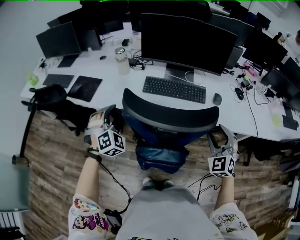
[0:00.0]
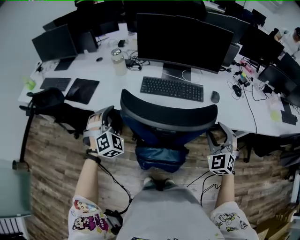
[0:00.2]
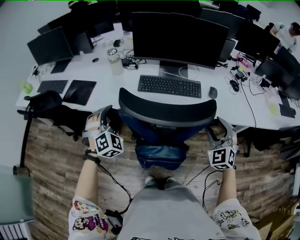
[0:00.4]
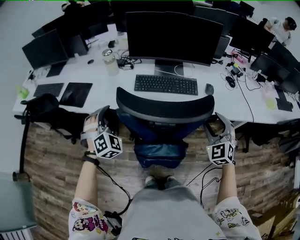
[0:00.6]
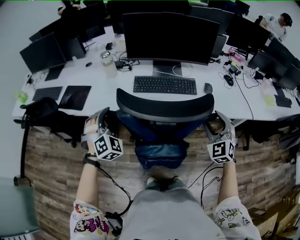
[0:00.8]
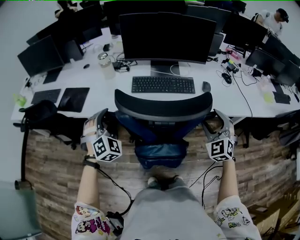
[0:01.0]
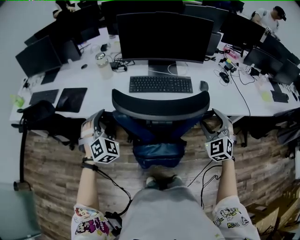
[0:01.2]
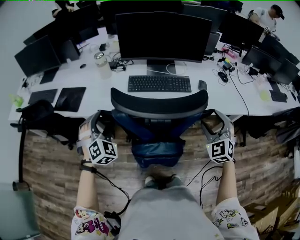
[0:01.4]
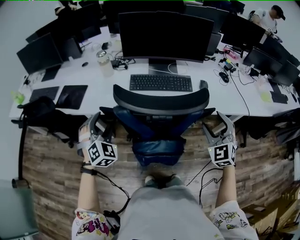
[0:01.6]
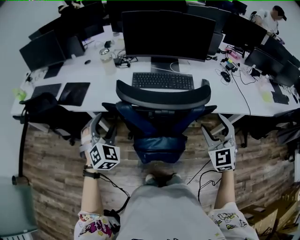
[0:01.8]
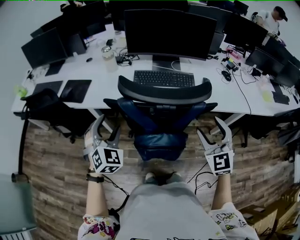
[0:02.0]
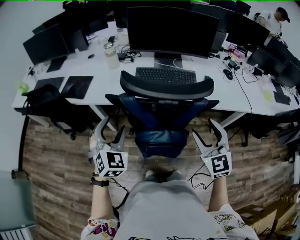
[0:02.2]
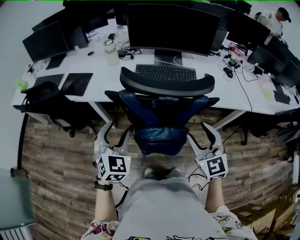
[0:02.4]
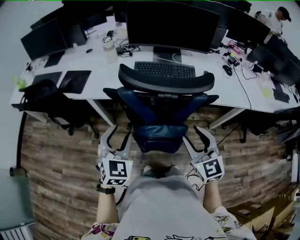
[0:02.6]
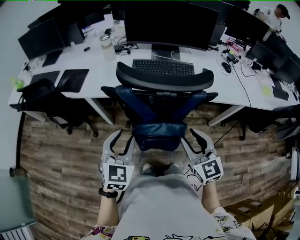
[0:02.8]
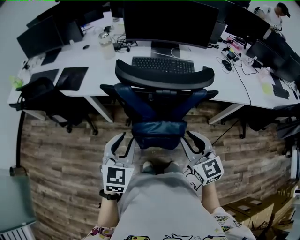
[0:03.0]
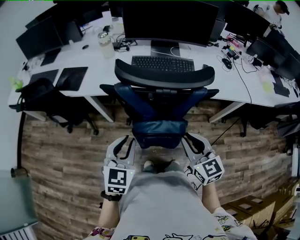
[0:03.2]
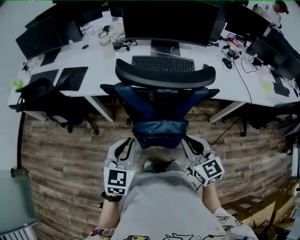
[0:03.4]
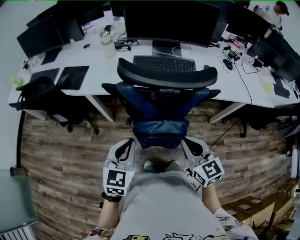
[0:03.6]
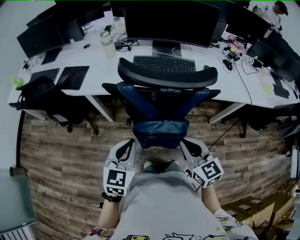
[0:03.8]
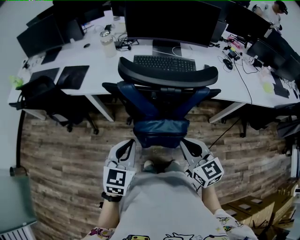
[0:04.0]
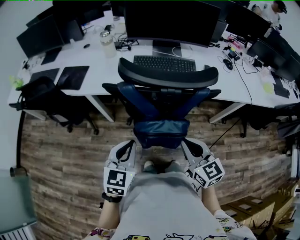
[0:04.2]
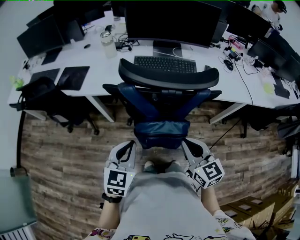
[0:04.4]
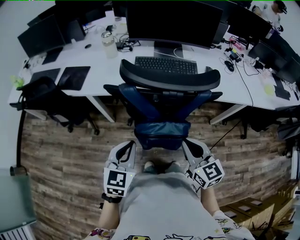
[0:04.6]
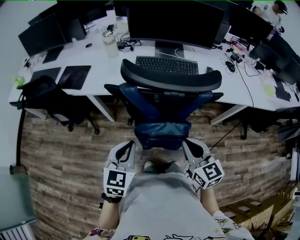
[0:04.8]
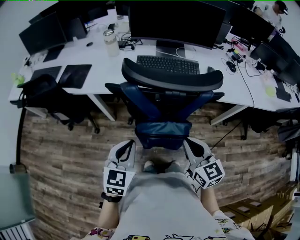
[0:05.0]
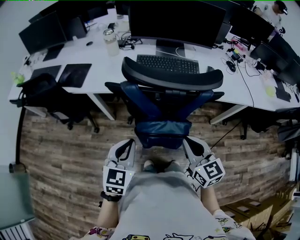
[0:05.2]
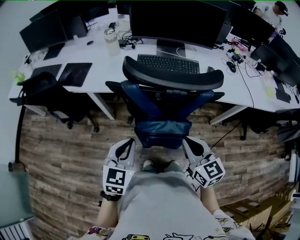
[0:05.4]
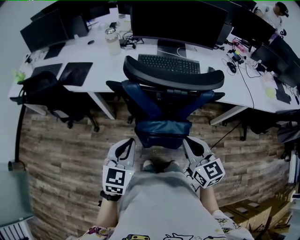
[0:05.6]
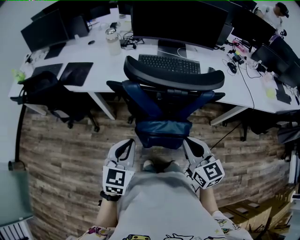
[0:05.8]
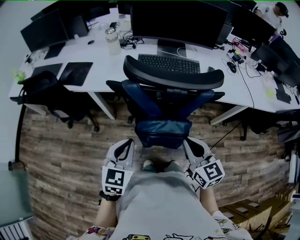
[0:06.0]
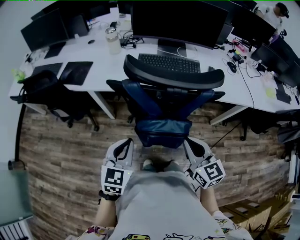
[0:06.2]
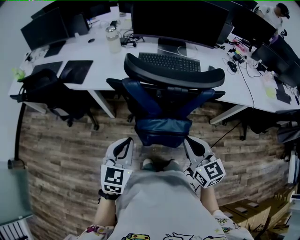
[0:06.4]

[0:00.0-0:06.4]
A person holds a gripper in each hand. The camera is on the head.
0:00.0 to 0:01.6: There are only small adjustments of the grippers.
0:01.6 to 0:03.2: The right gripper moves to the left and backward, roughly 20 cm, changes its angle by about 40 degrees, and closes up; the left gripper travels backward and to the right by some 20 cm, twists approximately 40 degrees counterclockwise, seen from behind, and closes up.
0:03.2 to 0:04.8: There are only small adjustments of the grippers.
0:04.8 to 0:06.4: Neither gripper changes place.

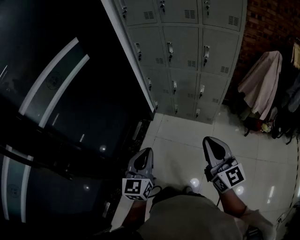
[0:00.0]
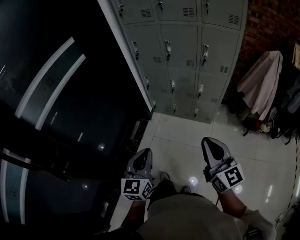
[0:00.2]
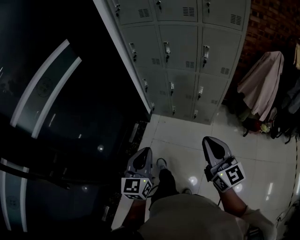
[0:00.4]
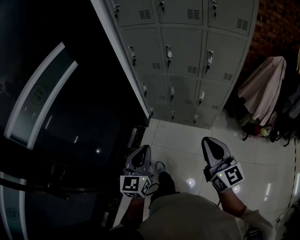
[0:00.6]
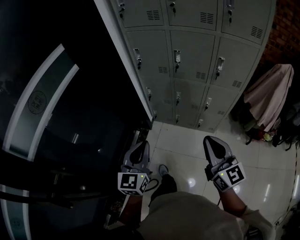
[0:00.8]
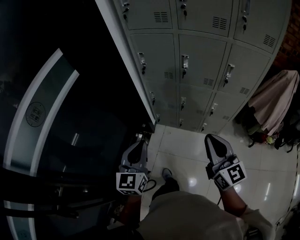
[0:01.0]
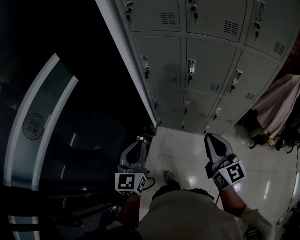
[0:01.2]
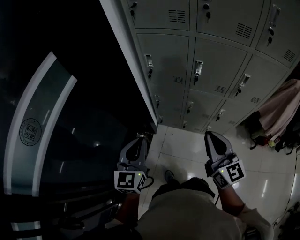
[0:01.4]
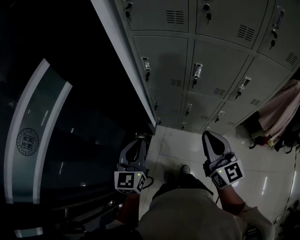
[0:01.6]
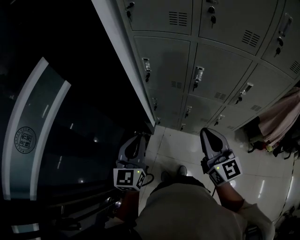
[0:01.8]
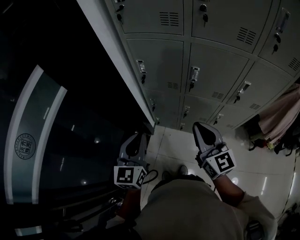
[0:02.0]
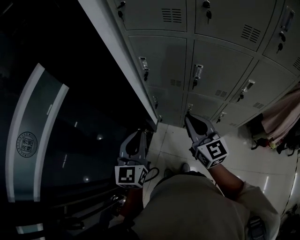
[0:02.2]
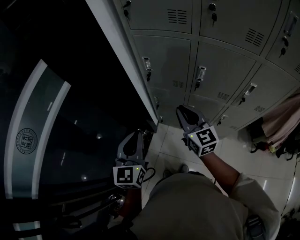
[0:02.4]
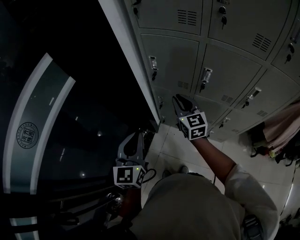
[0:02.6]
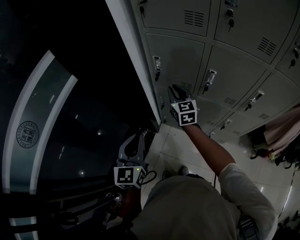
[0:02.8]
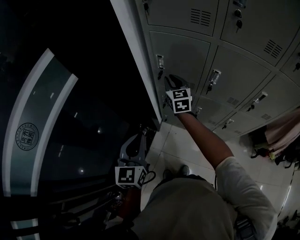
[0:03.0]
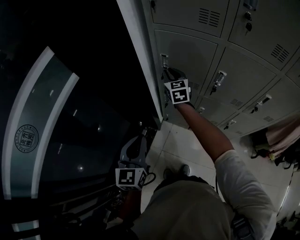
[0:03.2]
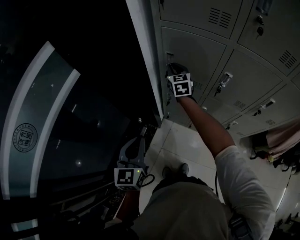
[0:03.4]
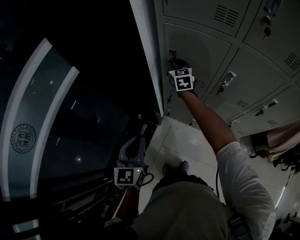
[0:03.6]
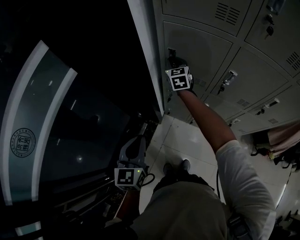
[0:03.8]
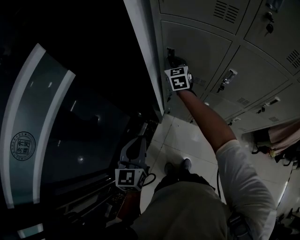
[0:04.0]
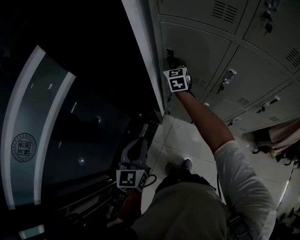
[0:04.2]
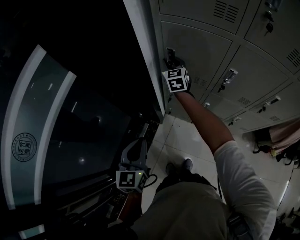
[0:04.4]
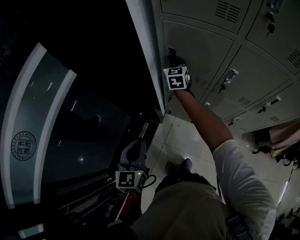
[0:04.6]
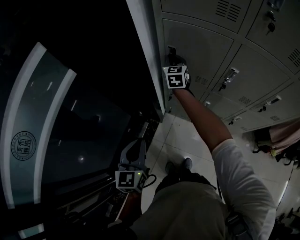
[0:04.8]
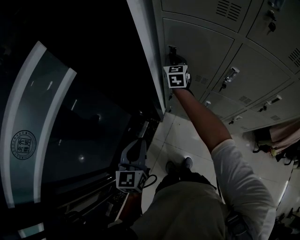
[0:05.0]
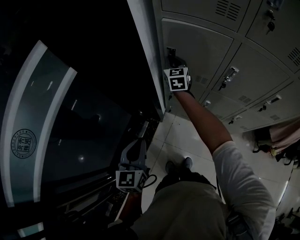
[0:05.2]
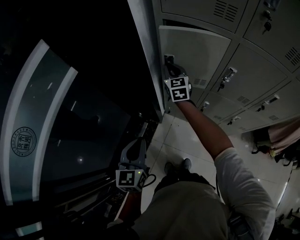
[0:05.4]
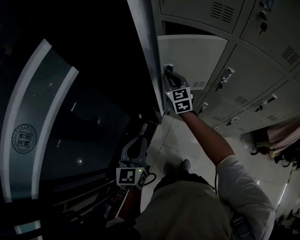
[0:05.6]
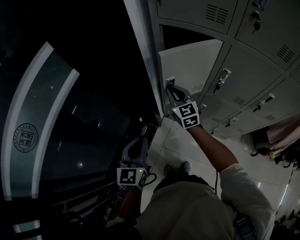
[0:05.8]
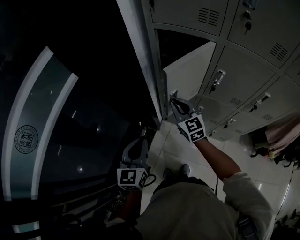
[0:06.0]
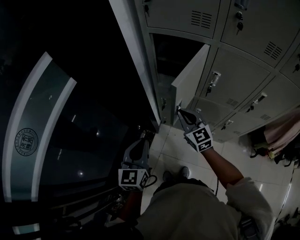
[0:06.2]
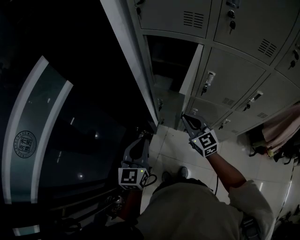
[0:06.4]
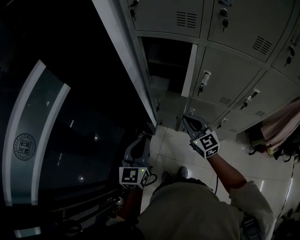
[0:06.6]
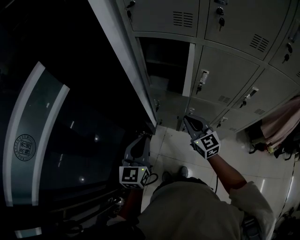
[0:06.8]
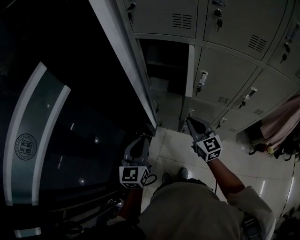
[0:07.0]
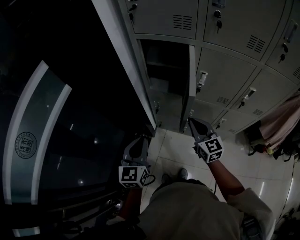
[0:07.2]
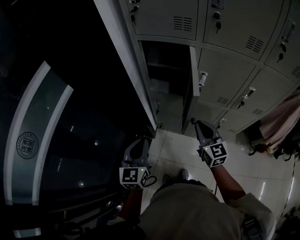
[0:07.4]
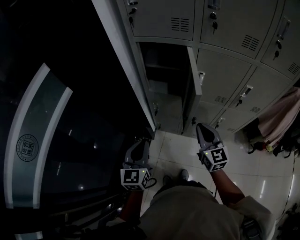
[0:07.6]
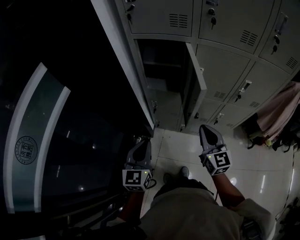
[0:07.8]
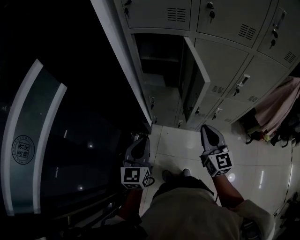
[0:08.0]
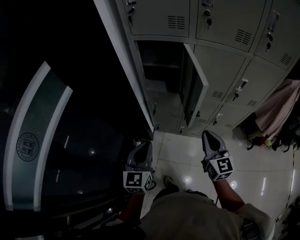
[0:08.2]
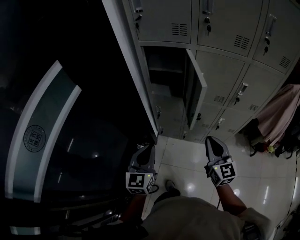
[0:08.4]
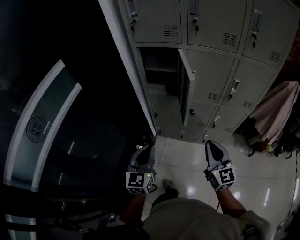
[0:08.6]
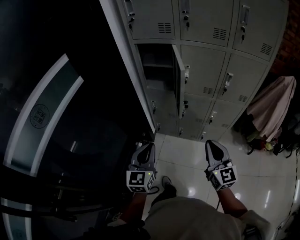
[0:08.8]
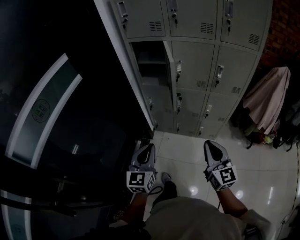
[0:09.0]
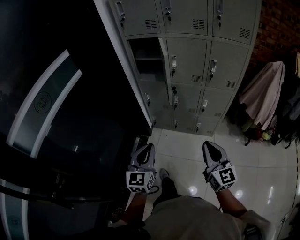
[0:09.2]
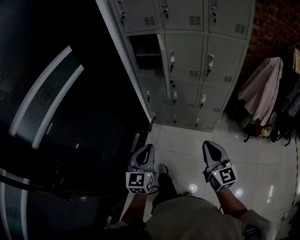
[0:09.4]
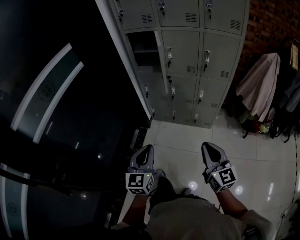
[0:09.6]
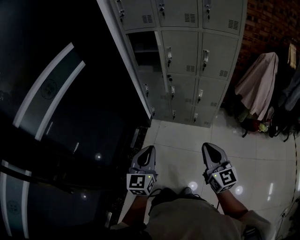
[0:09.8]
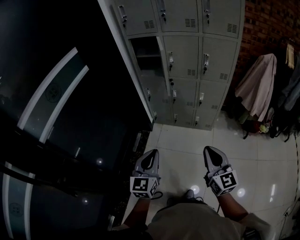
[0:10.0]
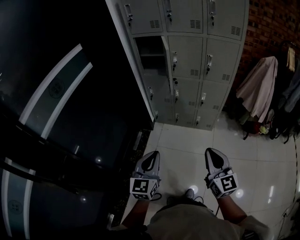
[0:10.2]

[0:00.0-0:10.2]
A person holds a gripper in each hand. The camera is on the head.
0:00.0 to 0:01.4: The pair of grippers is taken forward, roughly 50 cm.
0:01.4 to 0:03.0: The left gripper heads forward and downward, covering some 10 cm. The right gripper heads forward and downward, covering some 40 cm, and changes its angle by approximately 30 degrees.
0:03.0 to 0:04.4: The right gripper shifts some 10 cm forward; the left gripper is displaced downward by approximately 10 cm.
0:04.4 to 0:05.8: The right gripper moves backward, approximately 15 cm, and closes its fingers.
0:05.8 to 0:07.2: The left gripper goes approximately 5 cm to the right; the right gripper is displaced backward and to the right by about 20 cm.
0:07.2 to 0:08.8: The right gripper travels backward and upward by about 30 cm; the left gripper heads backward, covering some 20 cm.
0:08.8 to 0:10.2: Both grippers move backward, approximately 30 cm.

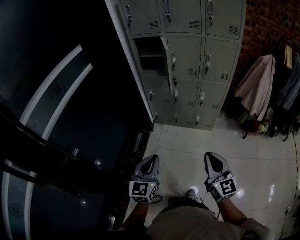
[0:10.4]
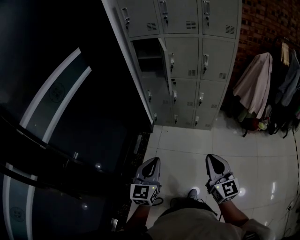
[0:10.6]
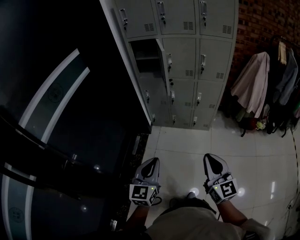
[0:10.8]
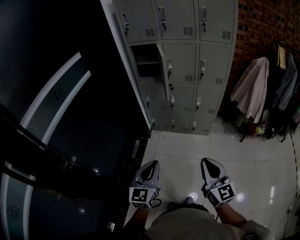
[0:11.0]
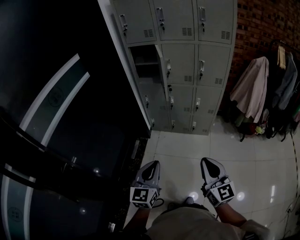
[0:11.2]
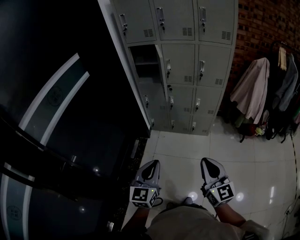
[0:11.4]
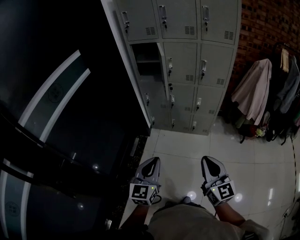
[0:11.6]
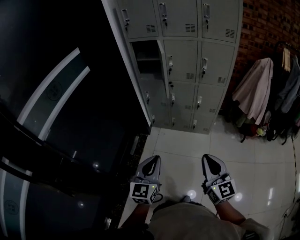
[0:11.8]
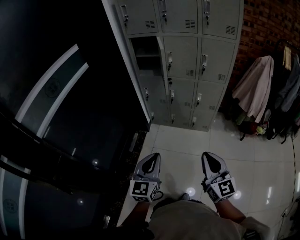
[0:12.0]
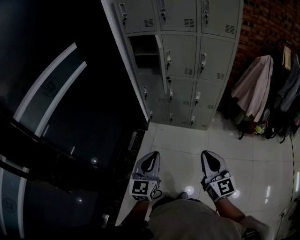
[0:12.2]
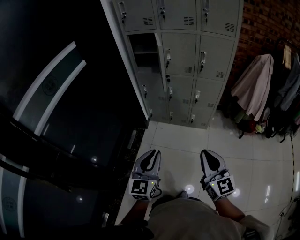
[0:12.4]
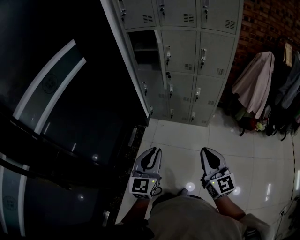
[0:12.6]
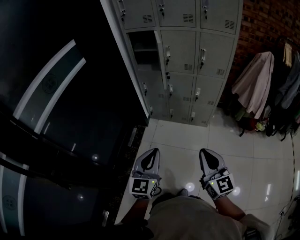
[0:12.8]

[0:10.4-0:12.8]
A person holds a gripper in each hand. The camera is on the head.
0:10.4 to 0:11.6: There are only small adjustments of the grippers.
0:11.6 to 0:12.8: There are only small adjustments of the grippers.

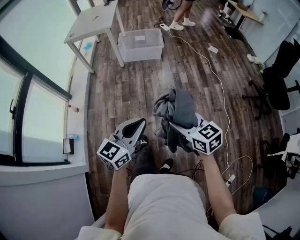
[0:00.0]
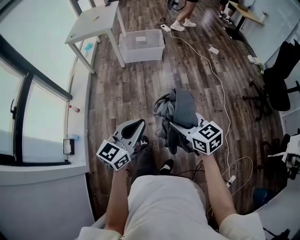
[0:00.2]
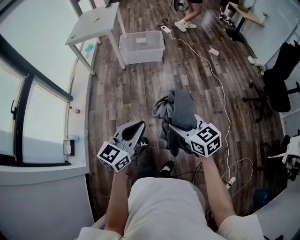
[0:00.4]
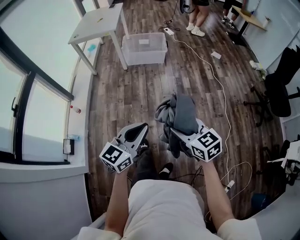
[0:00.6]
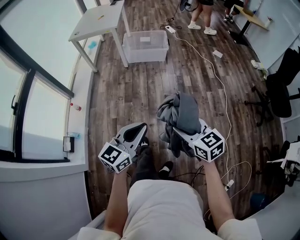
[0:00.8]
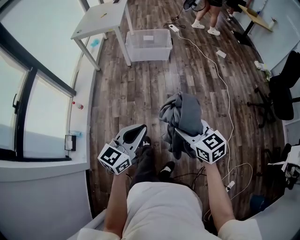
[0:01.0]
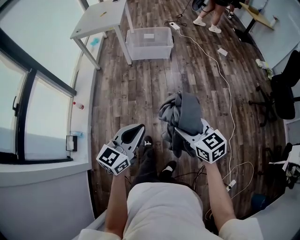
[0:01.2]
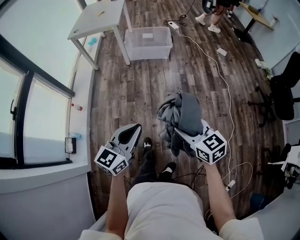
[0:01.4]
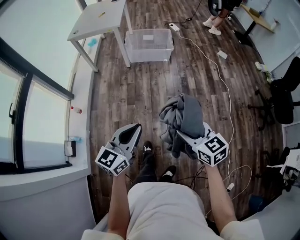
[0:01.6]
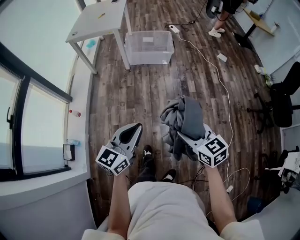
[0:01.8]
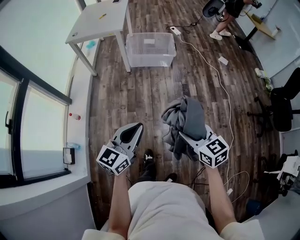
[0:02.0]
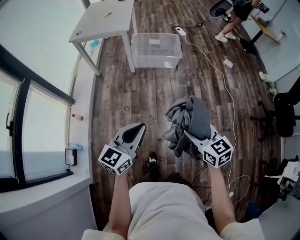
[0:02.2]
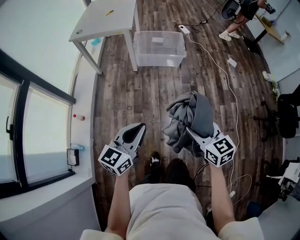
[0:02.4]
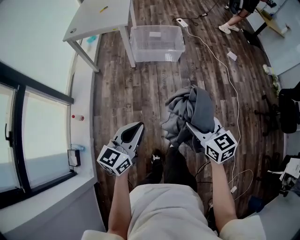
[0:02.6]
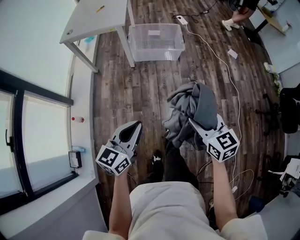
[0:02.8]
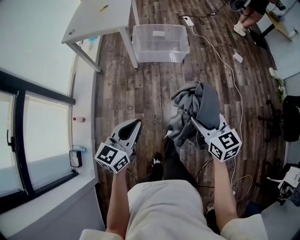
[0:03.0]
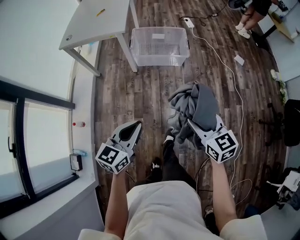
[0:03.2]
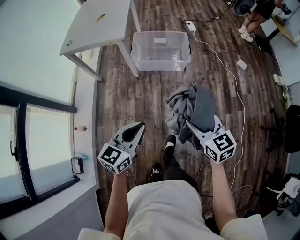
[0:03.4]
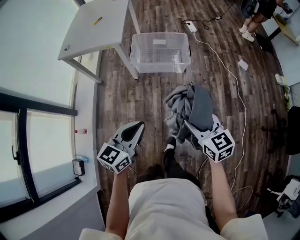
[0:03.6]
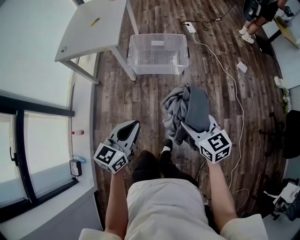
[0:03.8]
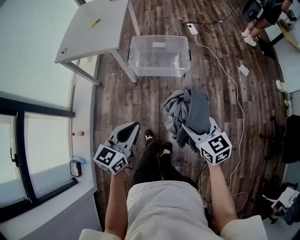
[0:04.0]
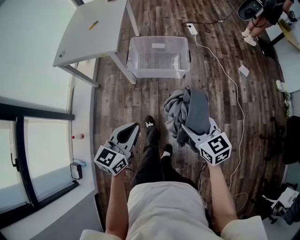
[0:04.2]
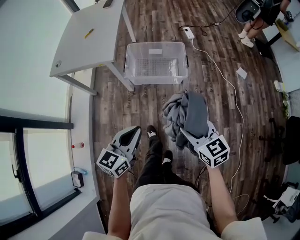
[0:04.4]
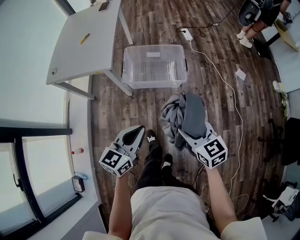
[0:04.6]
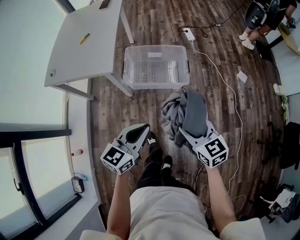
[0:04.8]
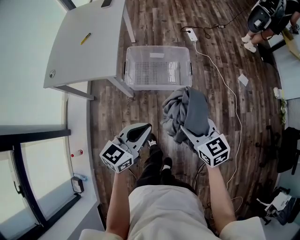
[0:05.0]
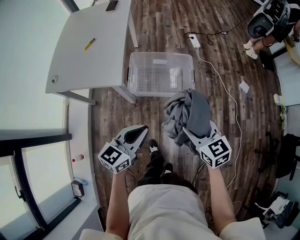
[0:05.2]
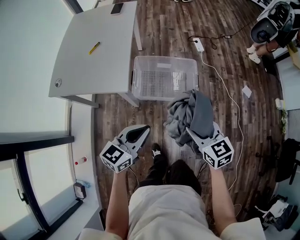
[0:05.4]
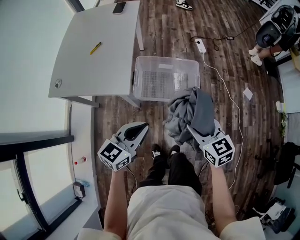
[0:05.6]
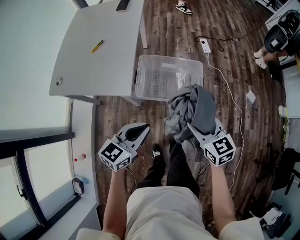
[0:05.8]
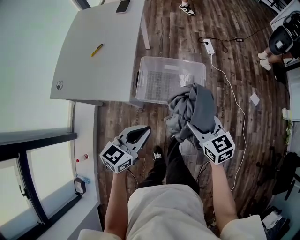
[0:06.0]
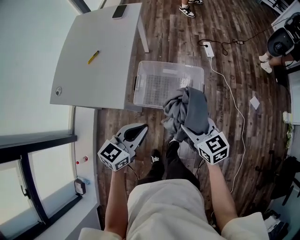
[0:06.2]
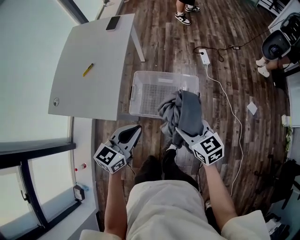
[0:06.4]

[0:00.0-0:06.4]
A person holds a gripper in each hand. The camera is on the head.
0:00.0 to 0:01.6: The left gripper travels forward and to the left by roughly 10 cm; the right gripper is displaced forward by about 10 cm.
0:01.6 to 0:03.2: Both grippers travel together forward, about 35 cm.
0:03.2 to 0:04.8: Both grippers move forward, about 30 cm.
0:04.8 to 0:06.4: The grippers both shift forward by about 30 cm.
